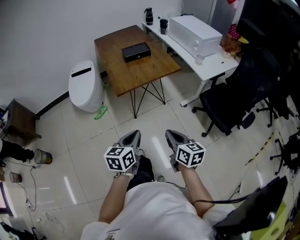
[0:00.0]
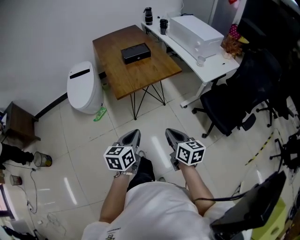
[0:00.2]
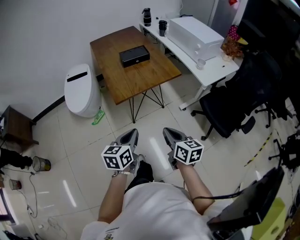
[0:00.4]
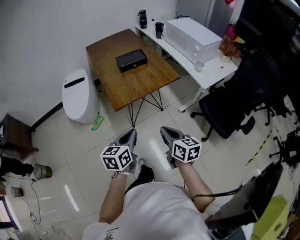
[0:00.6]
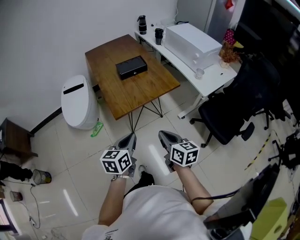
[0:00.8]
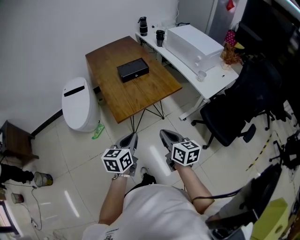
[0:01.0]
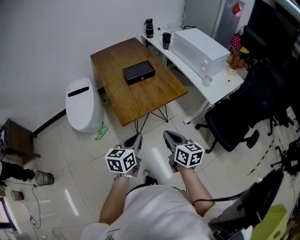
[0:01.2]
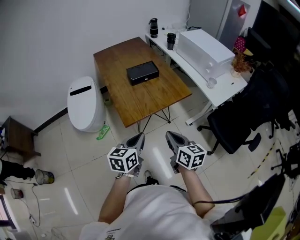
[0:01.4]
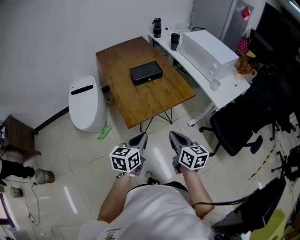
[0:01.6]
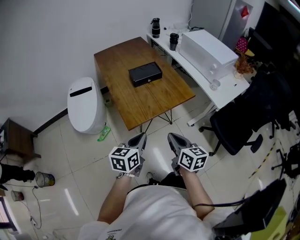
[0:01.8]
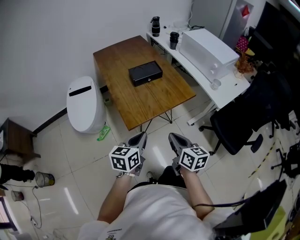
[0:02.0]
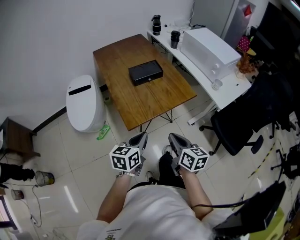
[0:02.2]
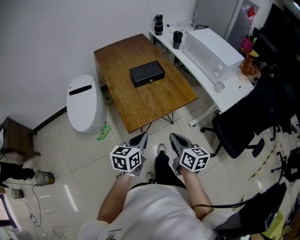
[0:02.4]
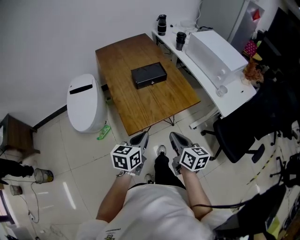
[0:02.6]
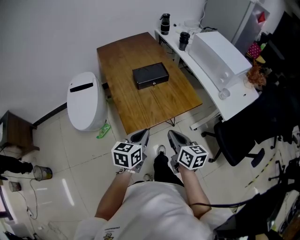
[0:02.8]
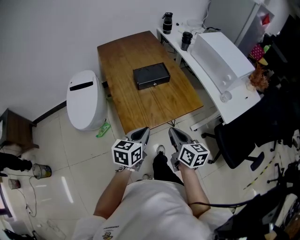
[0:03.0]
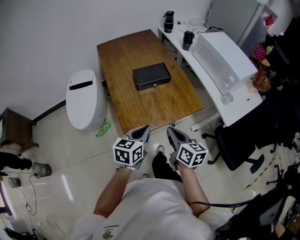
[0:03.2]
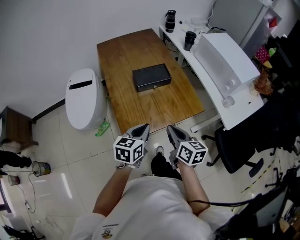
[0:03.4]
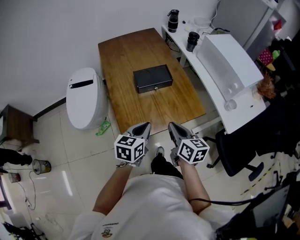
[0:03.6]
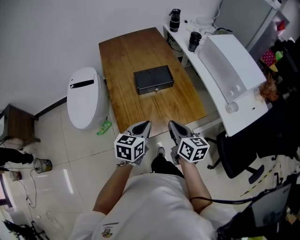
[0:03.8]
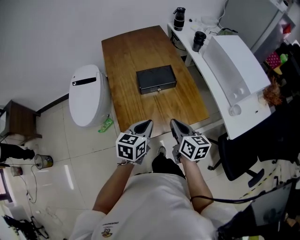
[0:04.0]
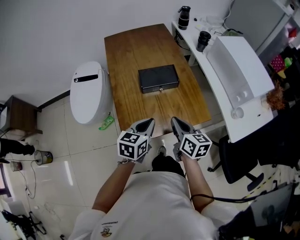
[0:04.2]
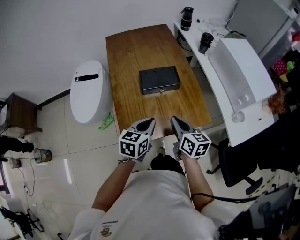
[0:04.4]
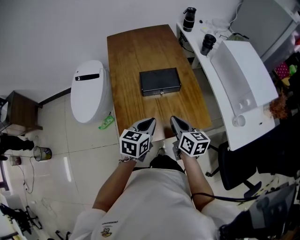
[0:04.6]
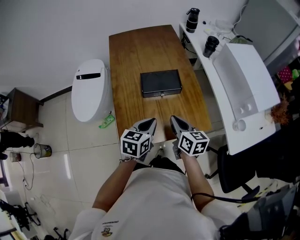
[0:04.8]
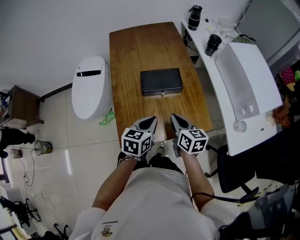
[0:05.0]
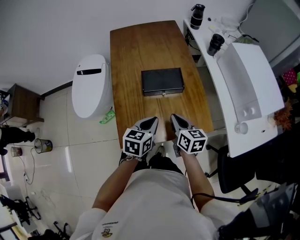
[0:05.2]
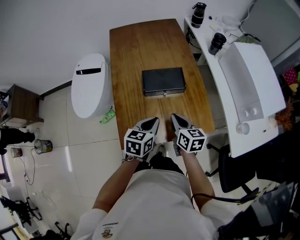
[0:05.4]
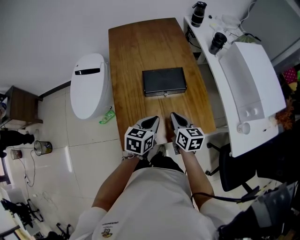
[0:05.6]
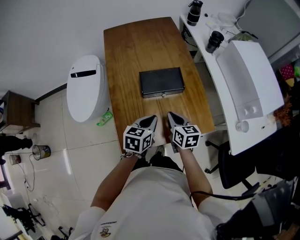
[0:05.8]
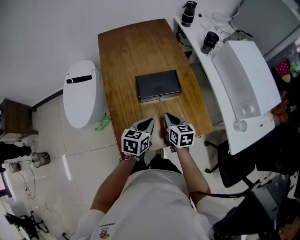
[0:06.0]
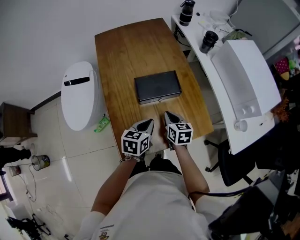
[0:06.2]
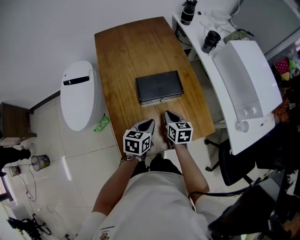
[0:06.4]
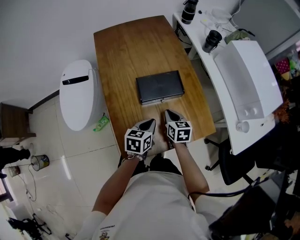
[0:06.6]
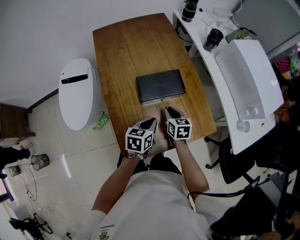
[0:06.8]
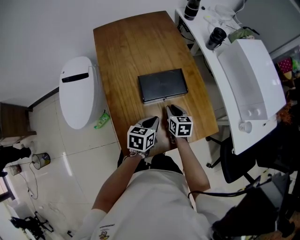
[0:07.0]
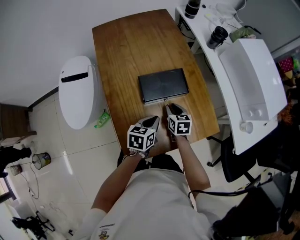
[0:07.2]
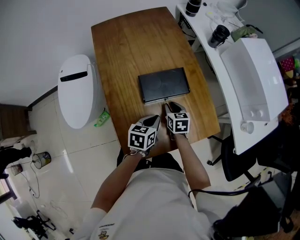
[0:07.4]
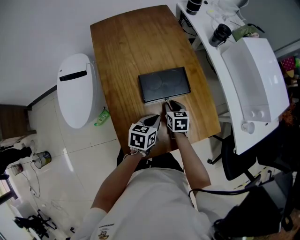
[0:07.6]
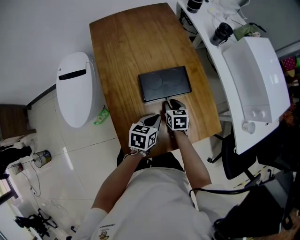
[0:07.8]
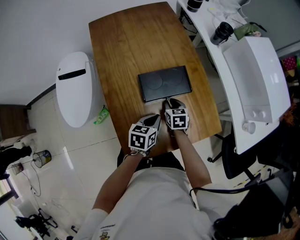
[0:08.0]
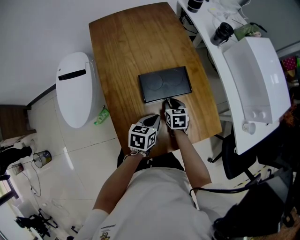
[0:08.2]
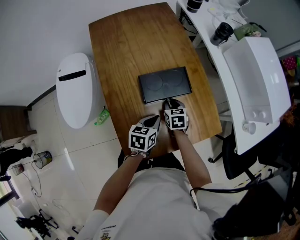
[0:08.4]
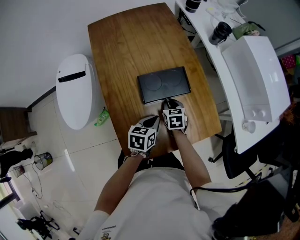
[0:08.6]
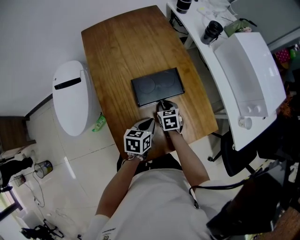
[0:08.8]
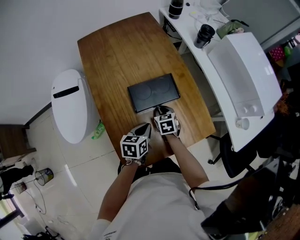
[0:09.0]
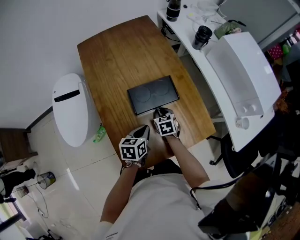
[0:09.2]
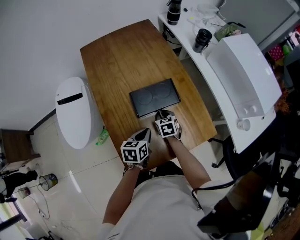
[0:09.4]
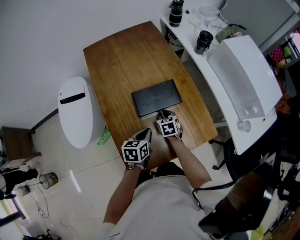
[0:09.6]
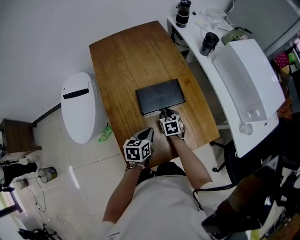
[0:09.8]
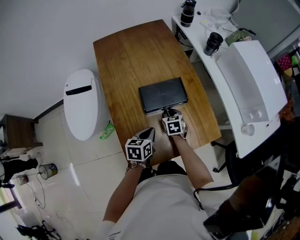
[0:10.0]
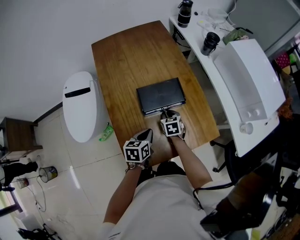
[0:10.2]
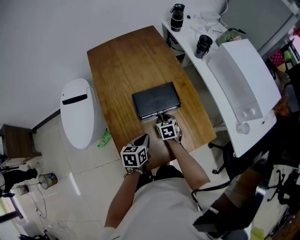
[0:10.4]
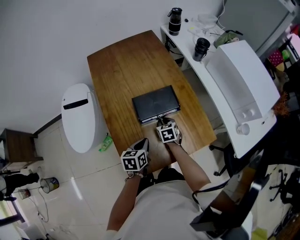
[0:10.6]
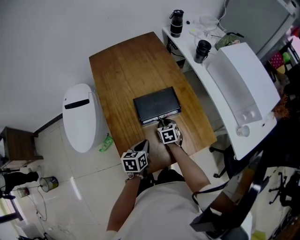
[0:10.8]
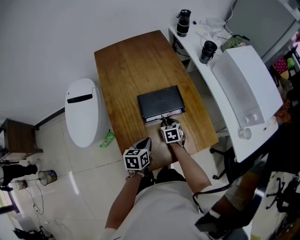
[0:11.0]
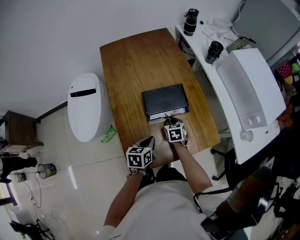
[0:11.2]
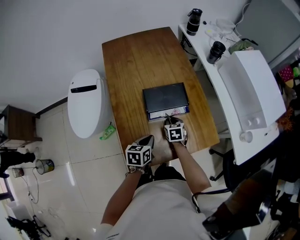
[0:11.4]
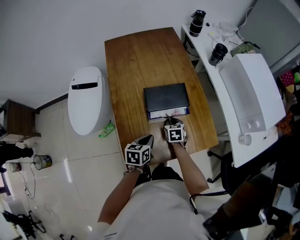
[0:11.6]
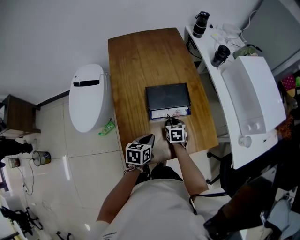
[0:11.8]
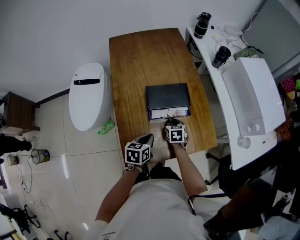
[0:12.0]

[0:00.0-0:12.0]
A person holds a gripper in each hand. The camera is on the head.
0.0 to 1.6 s: The grippers both shift forward by about 25 cm.
1.6 to 3.0 s: The grippers both shift forward by some 15 cm.
3.0 to 4.4 s: Both grippers travel together forward, approximately 15 cm.
4.4 to 6.0 s: The grippers both shift forward and downward by about 15 cm.
6.0 to 7.6 s: The right gripper goes approximately 15 cm downward and forward. The left gripper shifts approximately 10 cm downward and forward.
7.6 to 10.4 s: The grippers move only a little.
10.4 to 12.0 s: The grippers make only small movements.

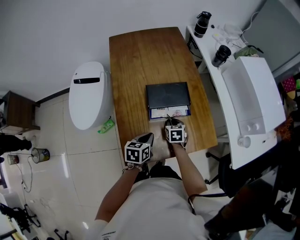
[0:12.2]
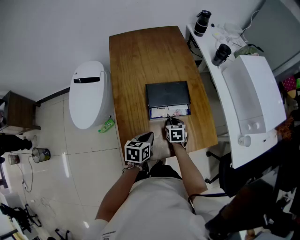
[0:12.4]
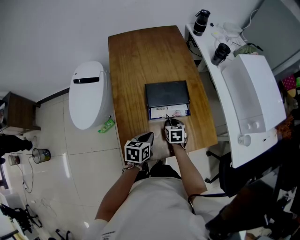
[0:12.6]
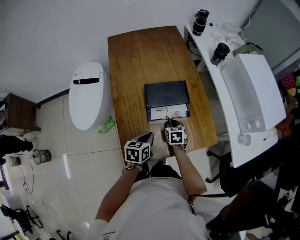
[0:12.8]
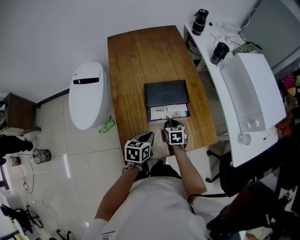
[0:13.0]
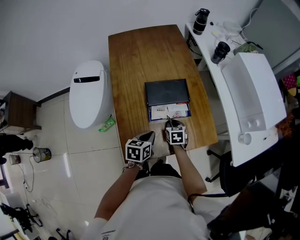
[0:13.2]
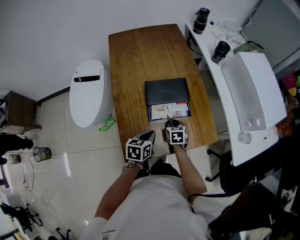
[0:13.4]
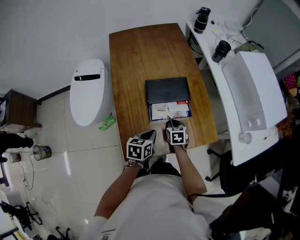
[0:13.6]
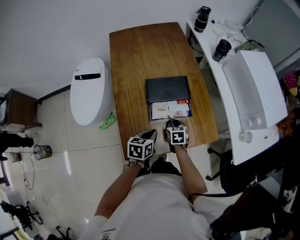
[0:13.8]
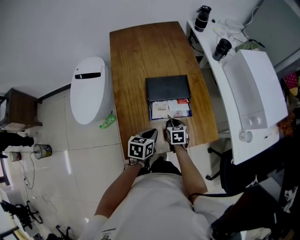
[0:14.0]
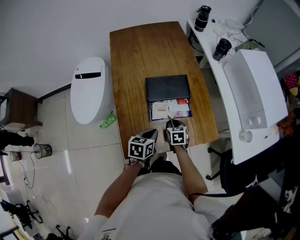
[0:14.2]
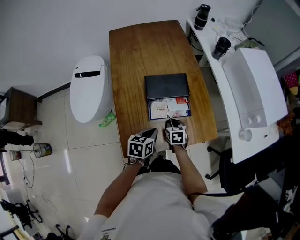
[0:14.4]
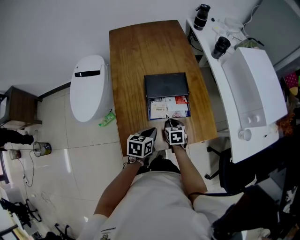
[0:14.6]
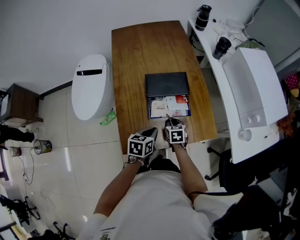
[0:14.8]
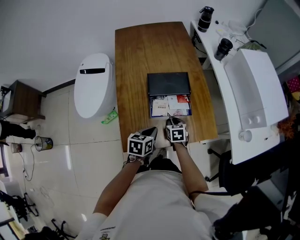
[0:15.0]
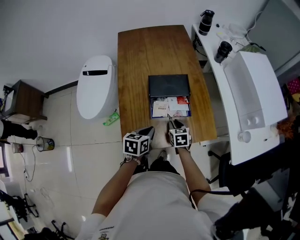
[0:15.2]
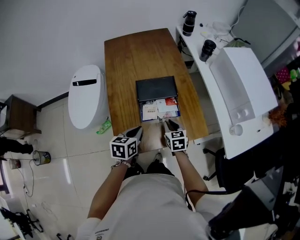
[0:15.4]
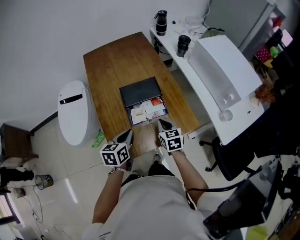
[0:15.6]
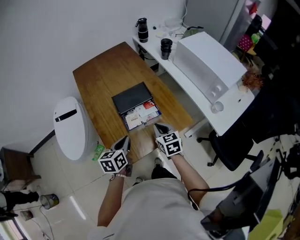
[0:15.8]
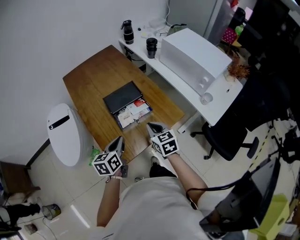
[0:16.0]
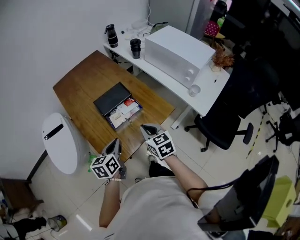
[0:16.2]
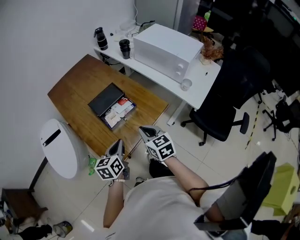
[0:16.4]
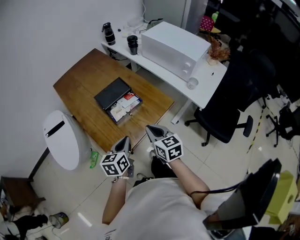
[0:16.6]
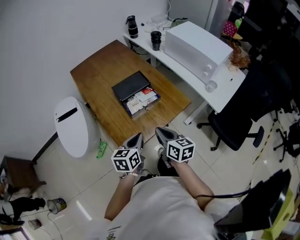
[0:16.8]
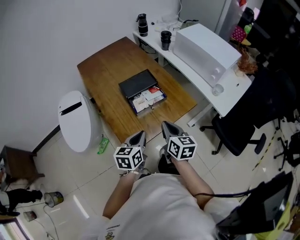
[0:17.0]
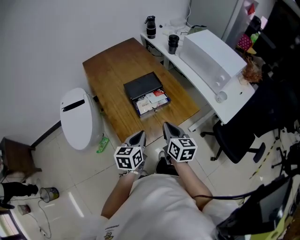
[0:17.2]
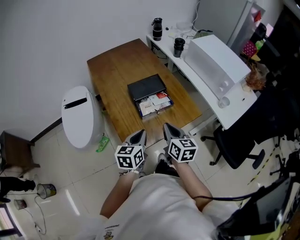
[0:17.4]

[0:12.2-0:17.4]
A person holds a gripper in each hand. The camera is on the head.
12.2 to 14.0 s: The grippers make only small movements.
14.0 to 15.6 s: Both grippers move upward, some 10 cm.
15.6 to 17.4 s: The right gripper shifts roughly 20 cm backward and upward, and turns by approximately 30 degrees, while the left gripper goes about 10 cm backward.

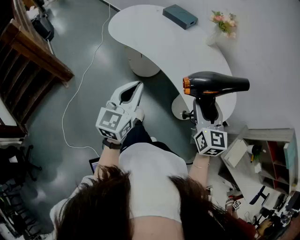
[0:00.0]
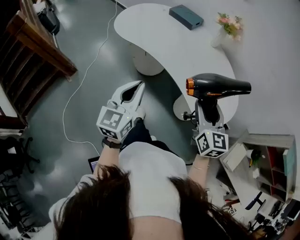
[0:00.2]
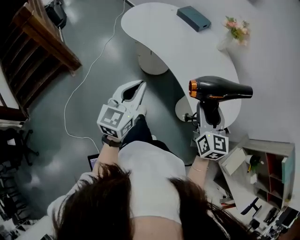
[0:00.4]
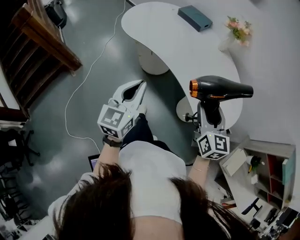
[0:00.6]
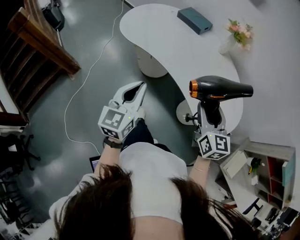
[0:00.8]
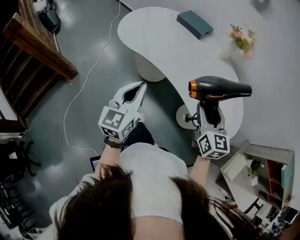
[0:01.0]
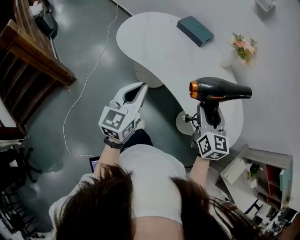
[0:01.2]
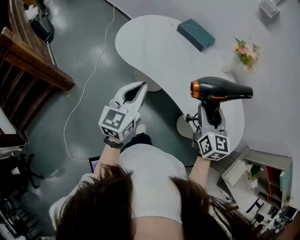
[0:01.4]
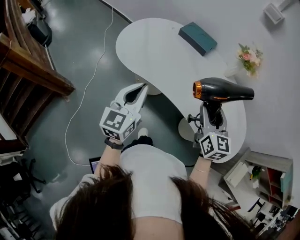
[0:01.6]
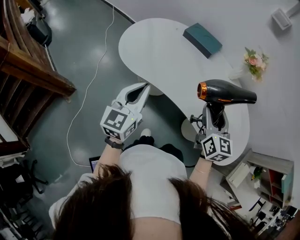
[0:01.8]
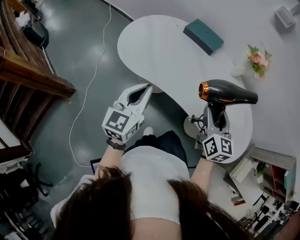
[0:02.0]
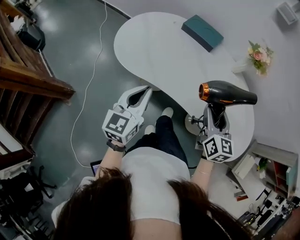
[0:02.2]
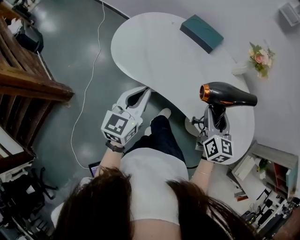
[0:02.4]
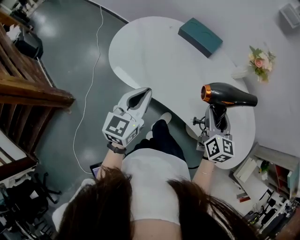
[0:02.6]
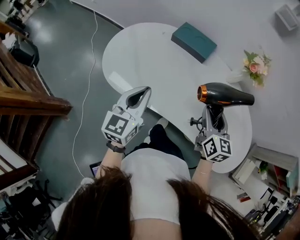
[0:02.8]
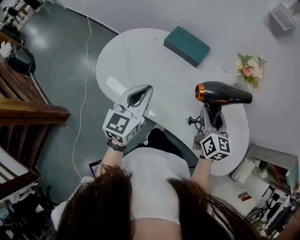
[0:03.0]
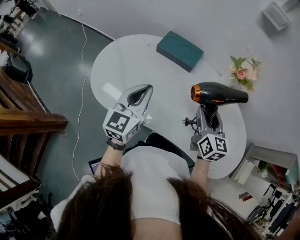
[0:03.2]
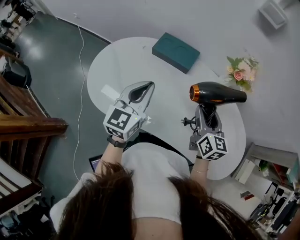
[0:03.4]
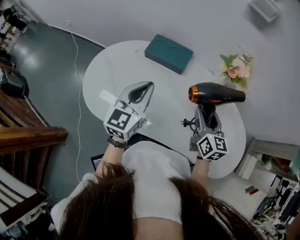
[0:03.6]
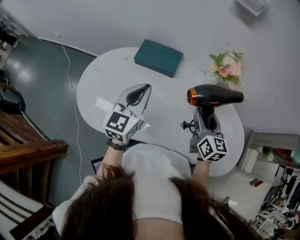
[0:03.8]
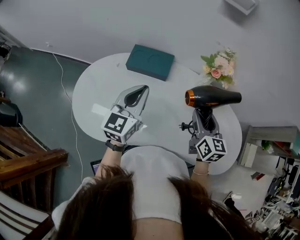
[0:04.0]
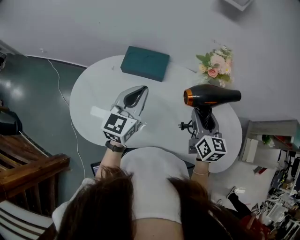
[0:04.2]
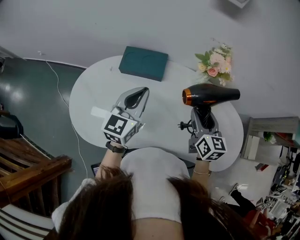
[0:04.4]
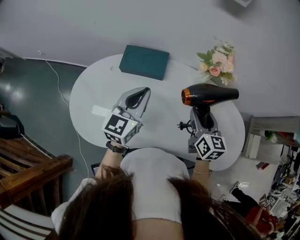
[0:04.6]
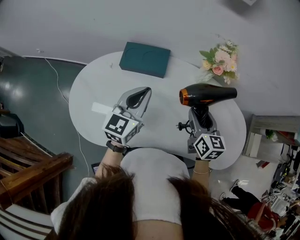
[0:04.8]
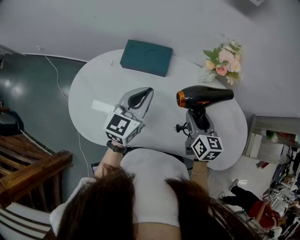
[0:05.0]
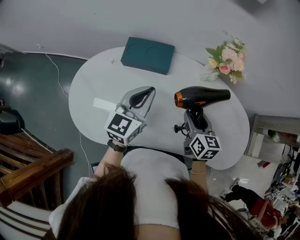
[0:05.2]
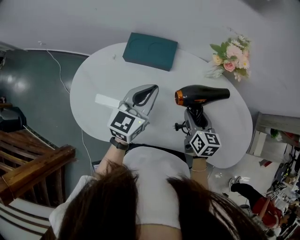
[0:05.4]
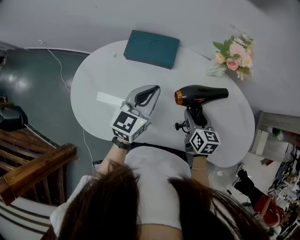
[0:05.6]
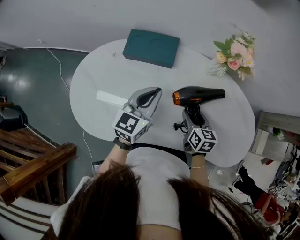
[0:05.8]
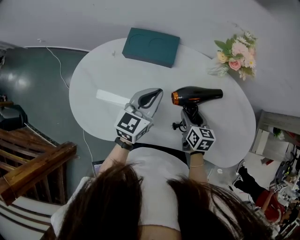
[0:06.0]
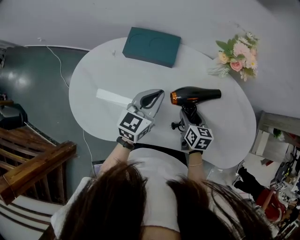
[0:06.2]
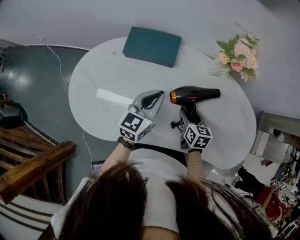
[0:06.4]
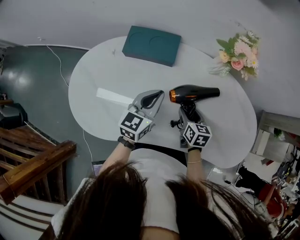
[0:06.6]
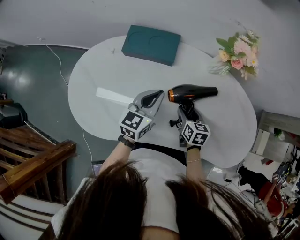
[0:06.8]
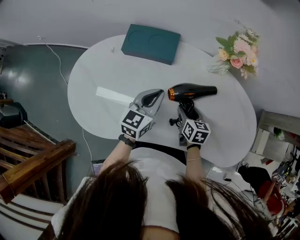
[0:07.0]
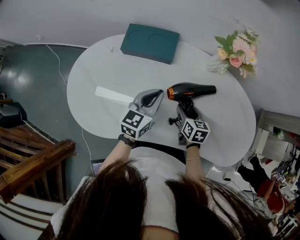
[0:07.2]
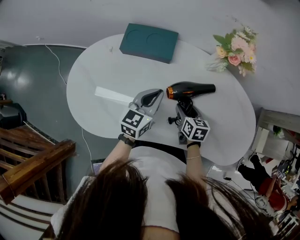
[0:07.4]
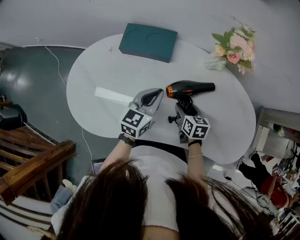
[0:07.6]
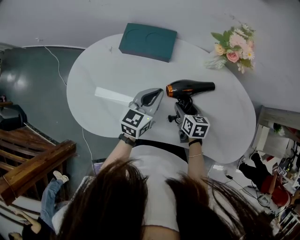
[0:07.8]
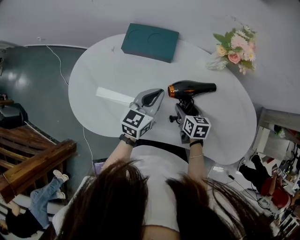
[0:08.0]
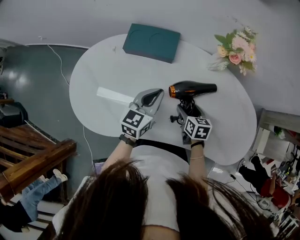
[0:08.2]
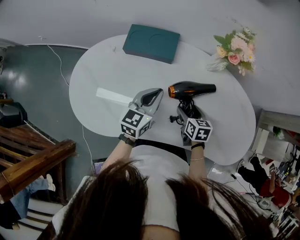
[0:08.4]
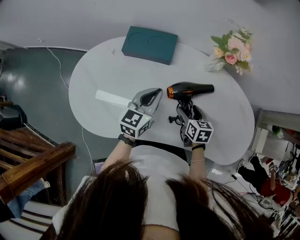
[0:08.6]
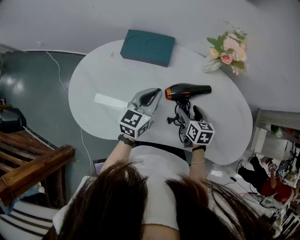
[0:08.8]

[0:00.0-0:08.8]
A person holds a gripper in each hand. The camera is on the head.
0.0 to 1.4 s: Both grippers move forward and to the left, some 20 cm.
1.4 to 3.0 s: The two grippers go roughly 20 cm forward.
3.0 to 4.4 s: The right gripper goes roughly 10 cm forward and to the right; the left gripper goes roughly 20 cm forward and to the right, and swivels about 20 degrees.
4.4 to 5.8 s: The right gripper heads downward, covering roughly 15 cm, and swivels some 20 degrees, while the left gripper shifts some 10 cm downward.
5.8 to 7.4 s: The two grippers go approximately 5 cm downward.
7.4 to 8.8 s: There are only small adjustments of the grippers.
